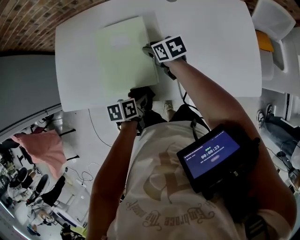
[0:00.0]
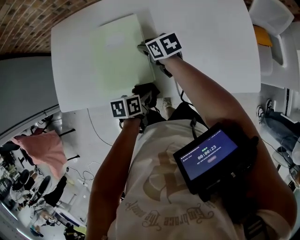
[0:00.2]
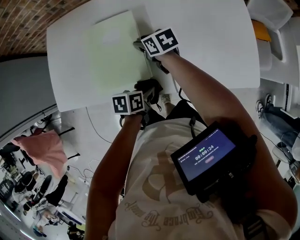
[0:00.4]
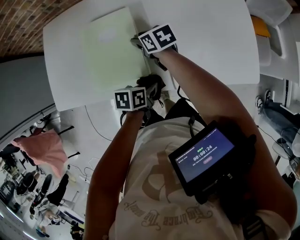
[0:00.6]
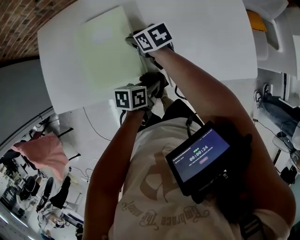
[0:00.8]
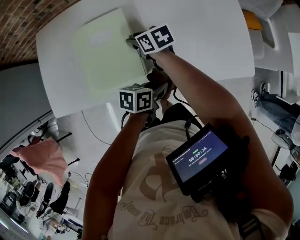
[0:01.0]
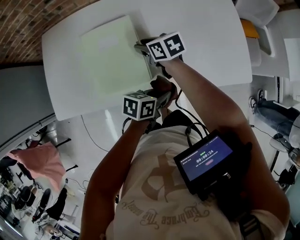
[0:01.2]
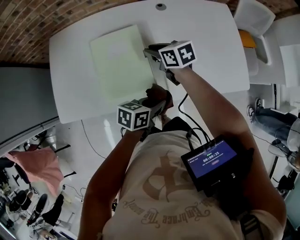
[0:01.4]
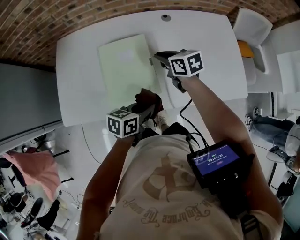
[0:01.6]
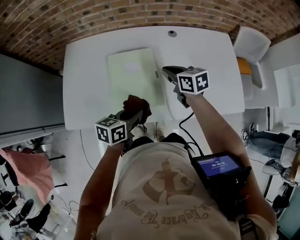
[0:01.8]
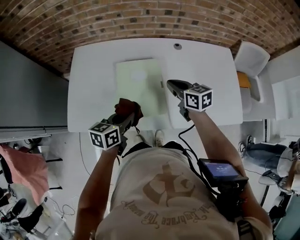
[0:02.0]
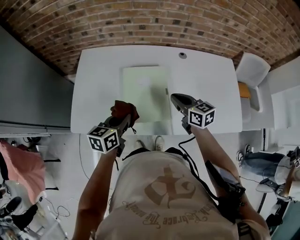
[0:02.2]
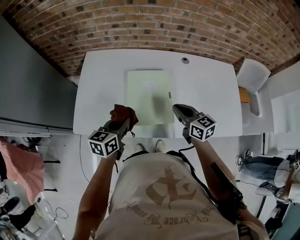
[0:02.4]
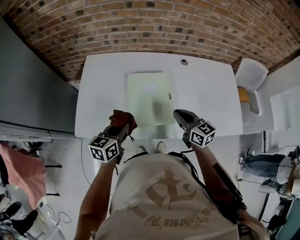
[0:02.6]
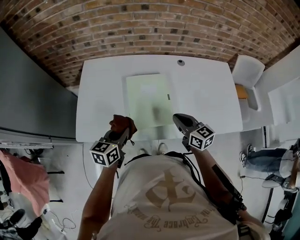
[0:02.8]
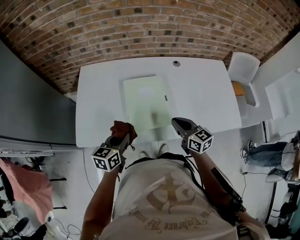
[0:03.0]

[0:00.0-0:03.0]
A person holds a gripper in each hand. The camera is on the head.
0:00.0 to 0:01.6: Both grippers travel together upward, roughly 10 cm. The right gripper closes. The left gripper changes its angle by approximately 30 degrees.
0:01.6 to 0:03.0: The left gripper moves to the left, about 20 cm, and rotates some 30 degrees, while the right gripper moves backward, some 15 cm, and changes its angle by roughly 20 degrees.

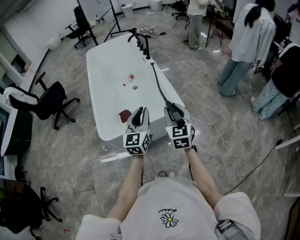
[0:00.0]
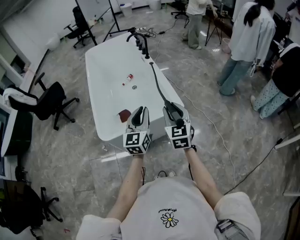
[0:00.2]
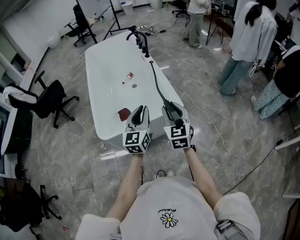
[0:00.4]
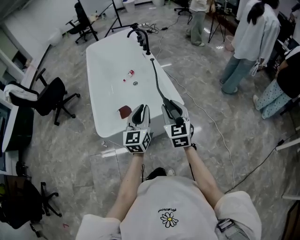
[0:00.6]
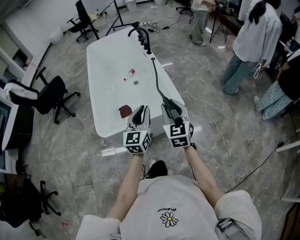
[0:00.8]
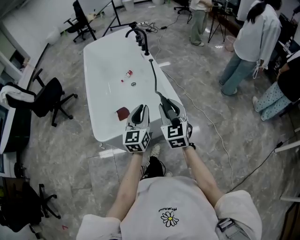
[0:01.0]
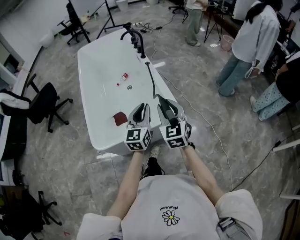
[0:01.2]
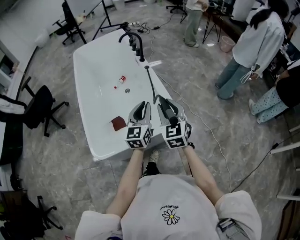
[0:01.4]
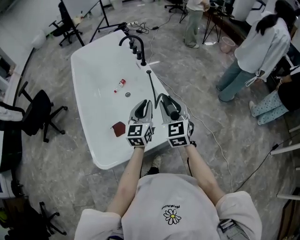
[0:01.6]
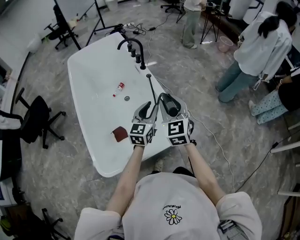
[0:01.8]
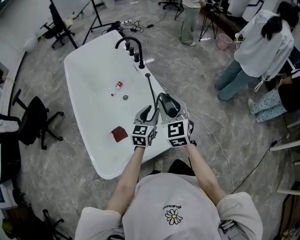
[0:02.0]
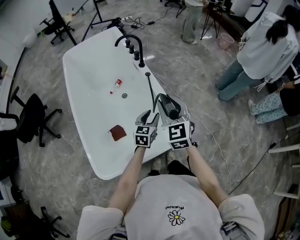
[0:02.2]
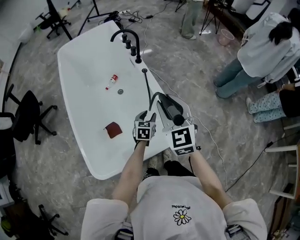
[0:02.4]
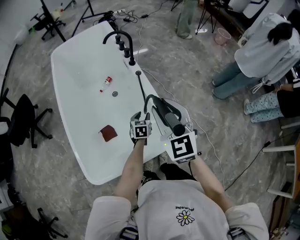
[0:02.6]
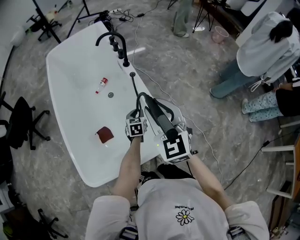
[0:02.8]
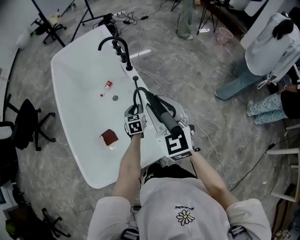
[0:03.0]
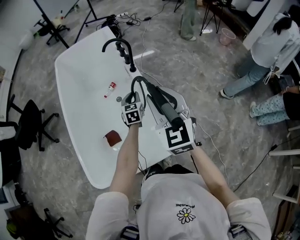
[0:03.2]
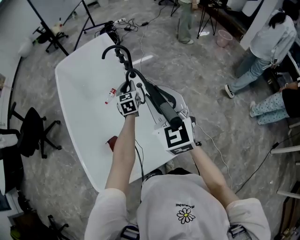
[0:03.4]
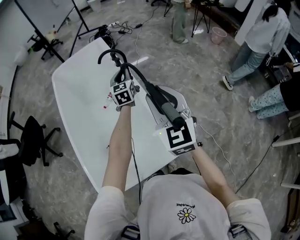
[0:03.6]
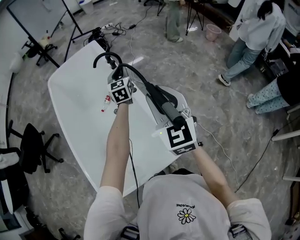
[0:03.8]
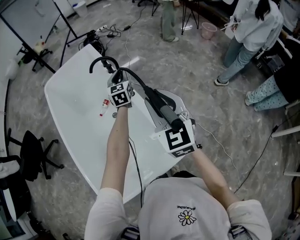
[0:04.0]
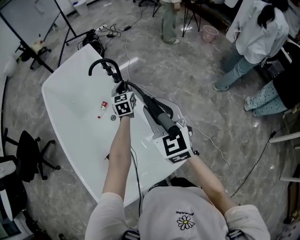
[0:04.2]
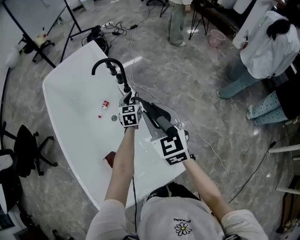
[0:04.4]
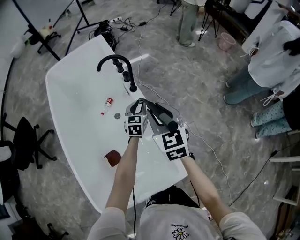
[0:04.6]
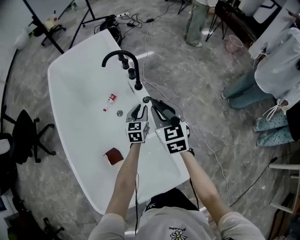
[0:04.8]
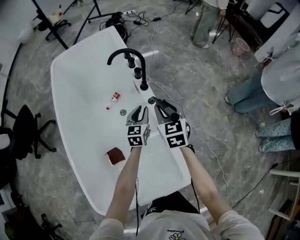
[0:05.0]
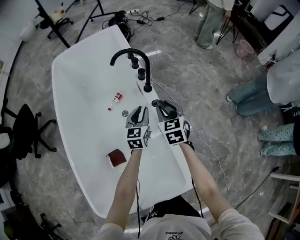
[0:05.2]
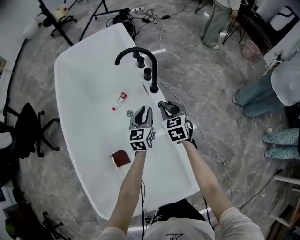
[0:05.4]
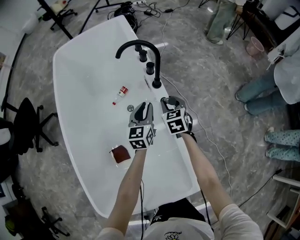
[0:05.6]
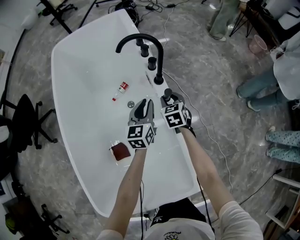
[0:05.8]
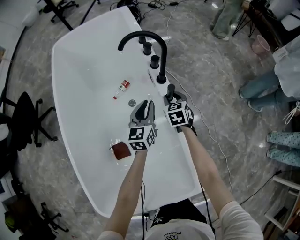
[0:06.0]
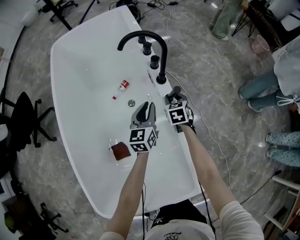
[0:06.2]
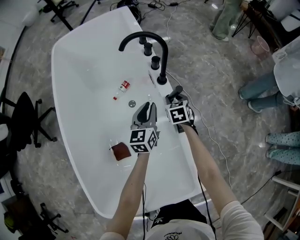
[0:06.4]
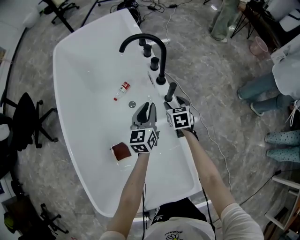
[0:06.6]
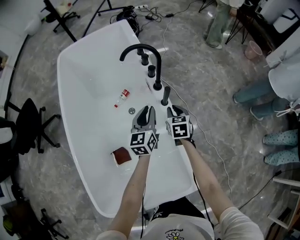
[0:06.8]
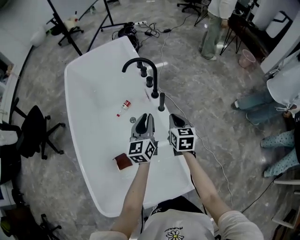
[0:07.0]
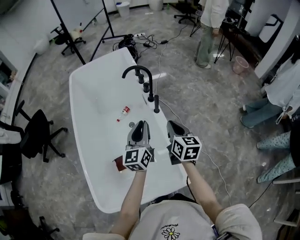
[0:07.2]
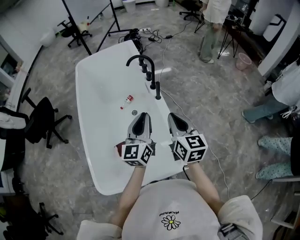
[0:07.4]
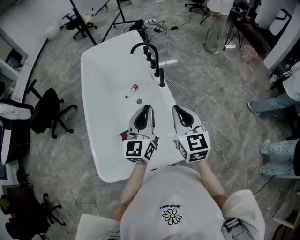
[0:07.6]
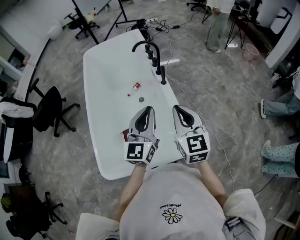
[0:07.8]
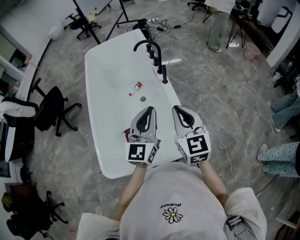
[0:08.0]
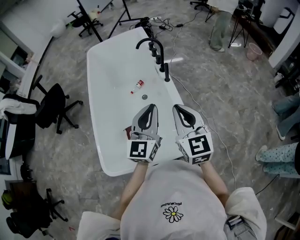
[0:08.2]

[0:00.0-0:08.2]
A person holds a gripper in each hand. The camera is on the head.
0:00.0 to 0:01.6: The two grippers go about 25 cm forward.
0:01.6 to 0:03.2: The left gripper heads forward and downward, covering approximately 30 cm, swivels about 30 degrees, and opens and closes again. The right gripper moves forward and upward, about 20 cm.
0:03.2 to 0:05.0: The right gripper shifts about 30 cm forward and downward, and swivels approximately 20 degrees. The left gripper heads forward, covering roughly 10 cm, and reaches roughly 15 cm upward, then returns.
0:05.0 to 0:06.6: The right gripper moves downward and forward, approximately 25 cm, and opens. Meanwhile the left gripper goes about 5 cm to the left.
0:06.6 to 0:08.2: The left gripper goes some 50 cm backward and upward, and swivels some 30 degrees, while the right gripper shifts about 60 cm upward and backward, tips its fingers upward by approximately 40 degrees, and closes up.

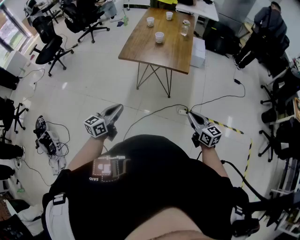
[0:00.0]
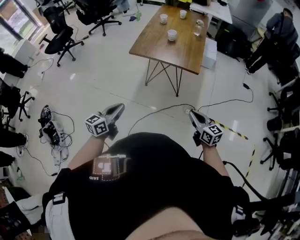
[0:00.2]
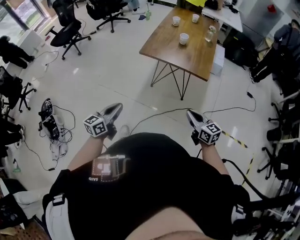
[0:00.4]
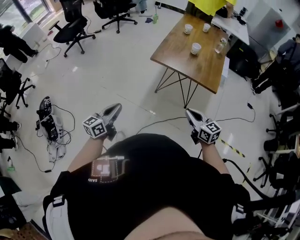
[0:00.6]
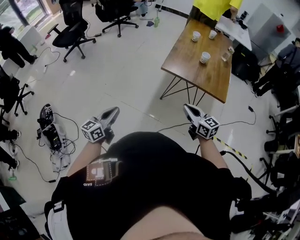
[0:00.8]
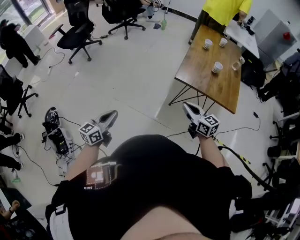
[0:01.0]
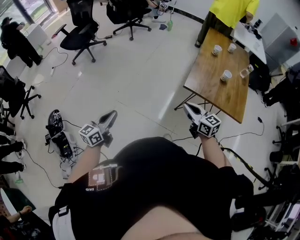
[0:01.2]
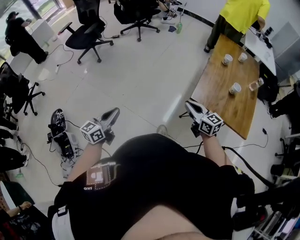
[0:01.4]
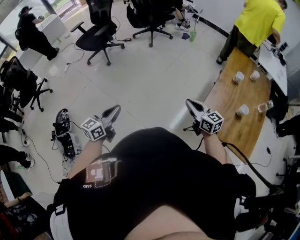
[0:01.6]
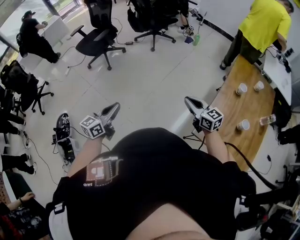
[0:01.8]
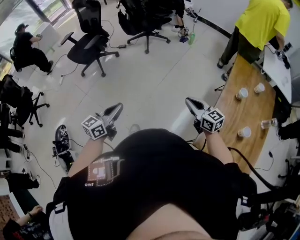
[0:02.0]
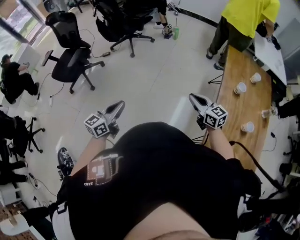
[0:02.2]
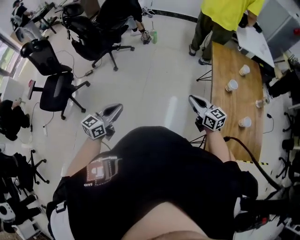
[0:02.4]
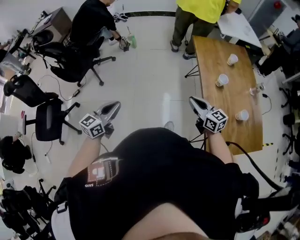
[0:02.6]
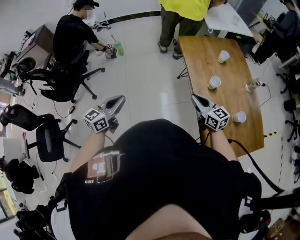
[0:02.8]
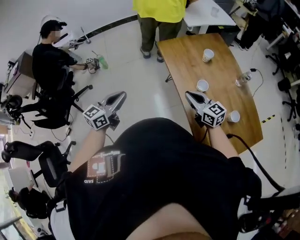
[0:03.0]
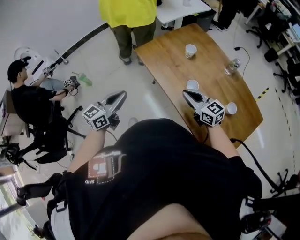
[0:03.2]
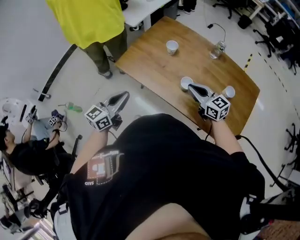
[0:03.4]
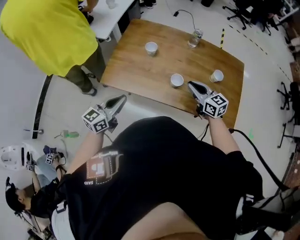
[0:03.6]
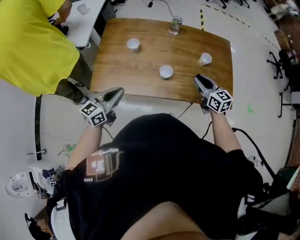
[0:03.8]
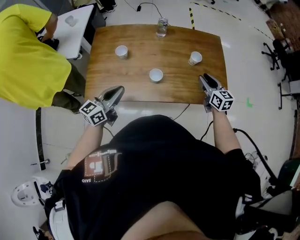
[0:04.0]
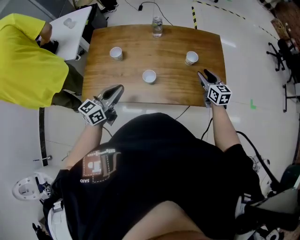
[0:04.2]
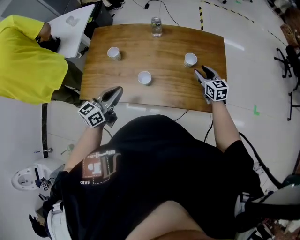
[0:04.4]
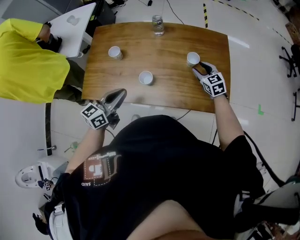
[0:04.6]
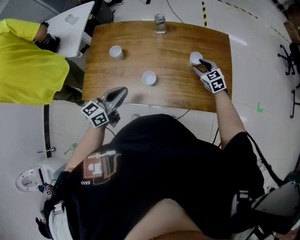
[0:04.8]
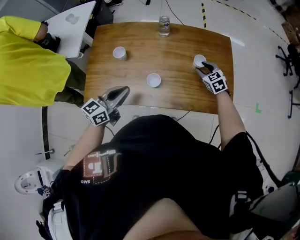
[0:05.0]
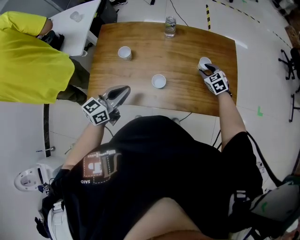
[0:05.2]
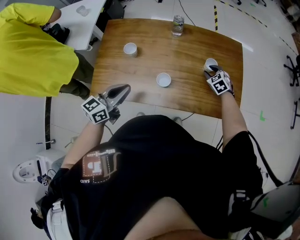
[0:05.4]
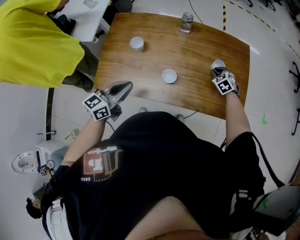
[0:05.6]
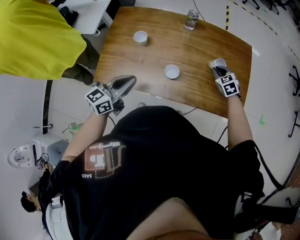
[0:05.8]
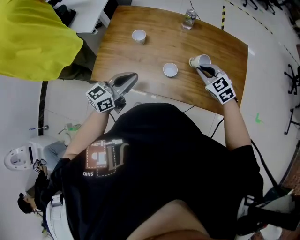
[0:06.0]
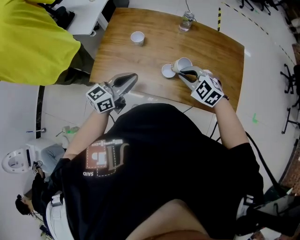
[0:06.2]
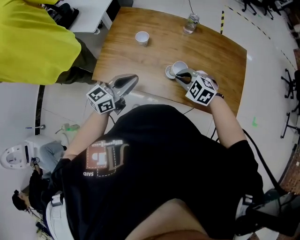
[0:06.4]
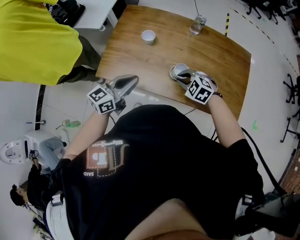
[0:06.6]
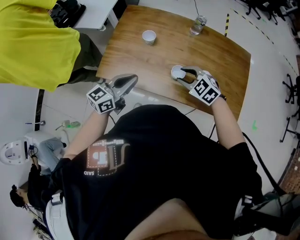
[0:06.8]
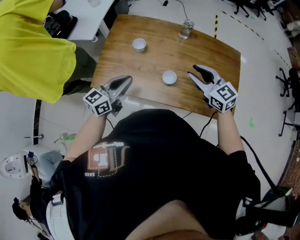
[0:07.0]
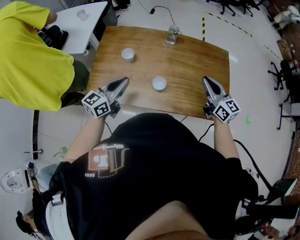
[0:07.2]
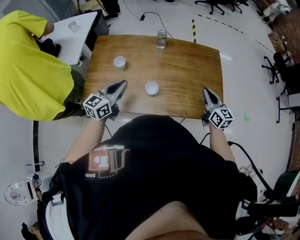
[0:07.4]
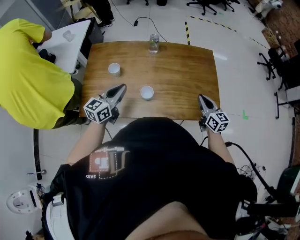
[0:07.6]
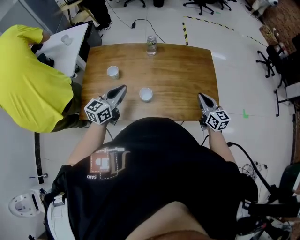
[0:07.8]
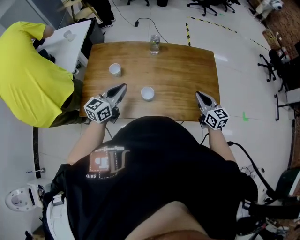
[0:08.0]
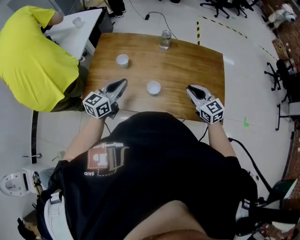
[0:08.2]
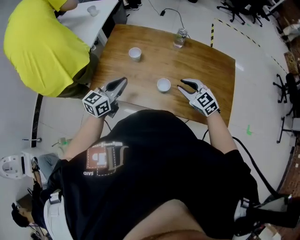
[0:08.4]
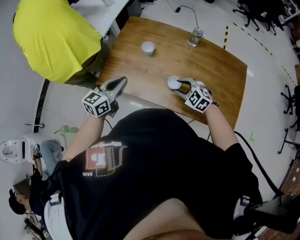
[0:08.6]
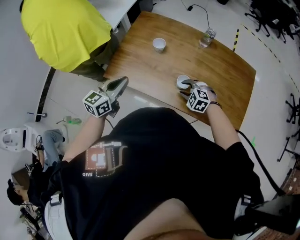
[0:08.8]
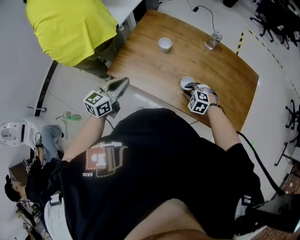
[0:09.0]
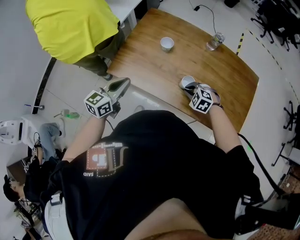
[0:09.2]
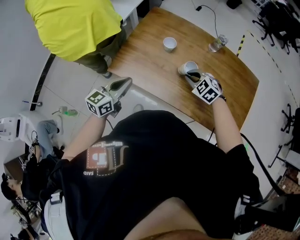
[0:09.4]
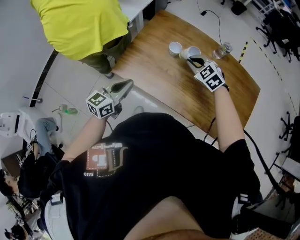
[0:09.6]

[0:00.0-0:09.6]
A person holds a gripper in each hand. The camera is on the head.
0:00.0 to 0:01.6: The two grippers travel together, forward and to the left, some 70 cm. The left gripper changes its angle by about 20 degrees; the right gripper turns by about 30 degrees.
0:01.6 to 0:03.2: The pair of grippers is taken approximately 70 cm. The right gripper swivels approximately 60 degrees; the left gripper rotates about 80 degrees.
0:03.2 to 0:04.8: The right gripper changes place by some 35 cm, rotates about 70 degrees, and opens; the left gripper ends up roughly 25 cm from where it was, and rotates about 50 degrees.
0:04.8 to 0:06.4: The left gripper travels to the left by roughly 5 cm. The right gripper moves to the left and backward, roughly 25 cm, turns by roughly 50 degrees, and closes up.
0:06.4 to 0:08.0: The left gripper goes some 10 cm forward and to the right. The right gripper moves to the right, about 25 cm, tips its fingers upward by approximately 40 degrees, and opens and closes again.
0:08.0 to 0:09.6: The right gripper travels downward and back again, roughly 20 cm each way, points its fingers approximately 30 degrees further downward, and opens, then closes again; the left gripper ends up some 25 cm from where it was, and rotates about 20 degrees.

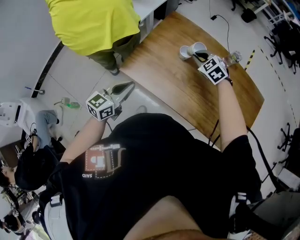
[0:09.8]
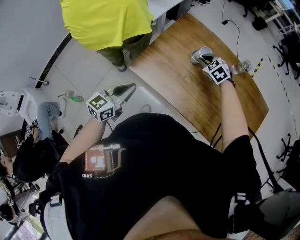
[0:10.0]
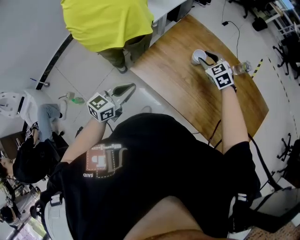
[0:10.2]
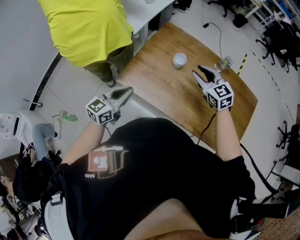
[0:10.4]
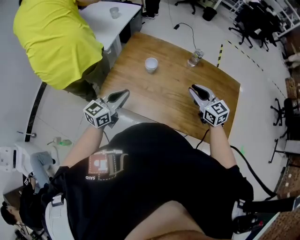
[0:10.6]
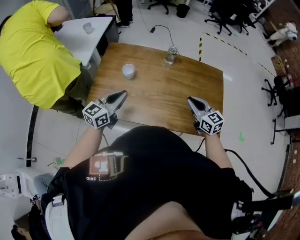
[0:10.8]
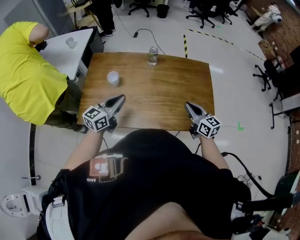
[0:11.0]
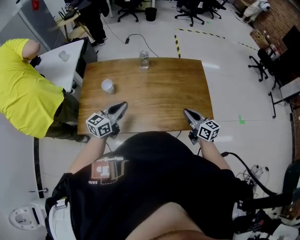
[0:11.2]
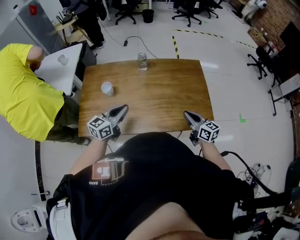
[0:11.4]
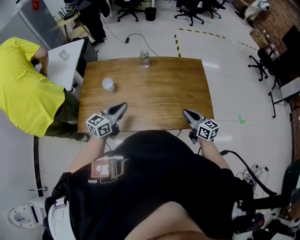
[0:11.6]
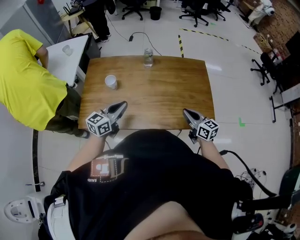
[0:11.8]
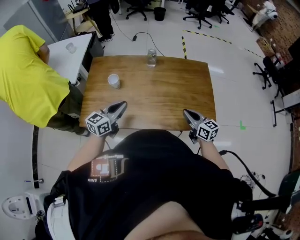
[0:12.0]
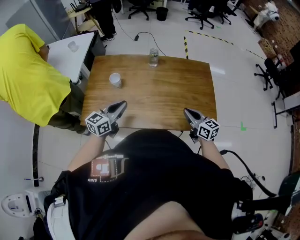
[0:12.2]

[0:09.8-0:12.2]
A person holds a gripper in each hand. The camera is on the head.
0:09.8 to 0:11.0: The right gripper shifts by approximately 40 cm, angles its fingers upward, by roughly 40 degrees, and opens, then closes again; the left gripper changes place by roughly 25 cm, and swivels roughly 30 degrees.
